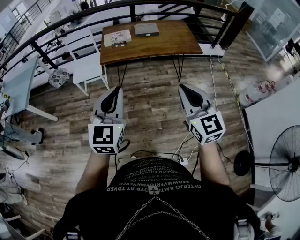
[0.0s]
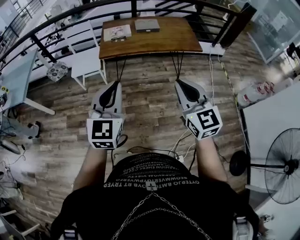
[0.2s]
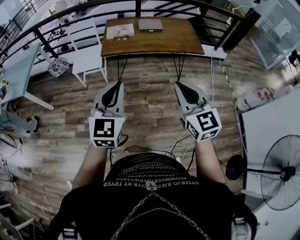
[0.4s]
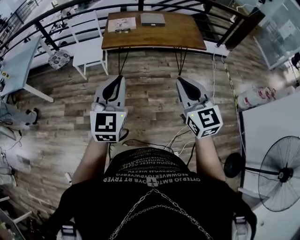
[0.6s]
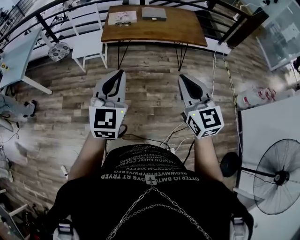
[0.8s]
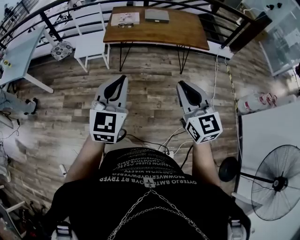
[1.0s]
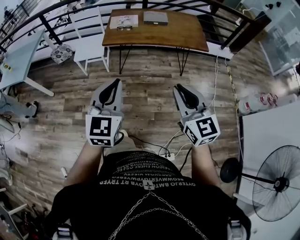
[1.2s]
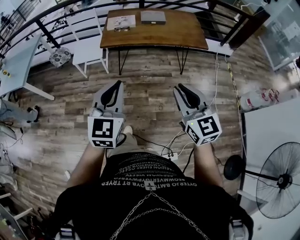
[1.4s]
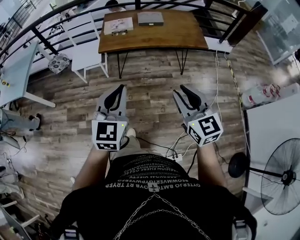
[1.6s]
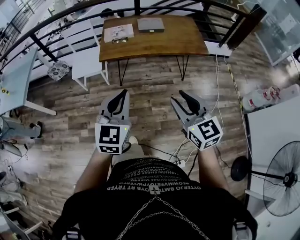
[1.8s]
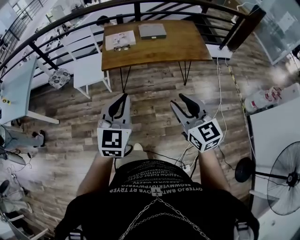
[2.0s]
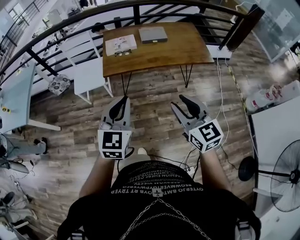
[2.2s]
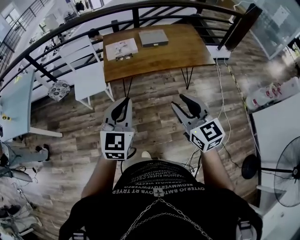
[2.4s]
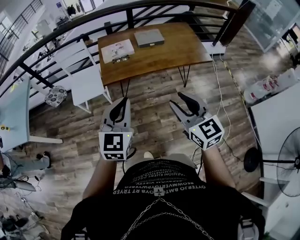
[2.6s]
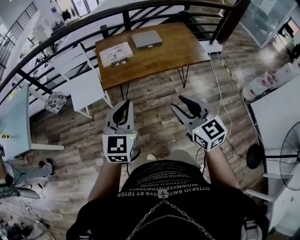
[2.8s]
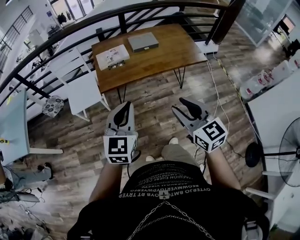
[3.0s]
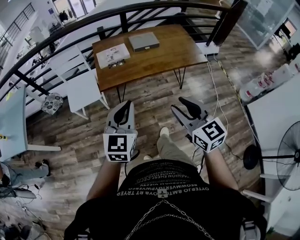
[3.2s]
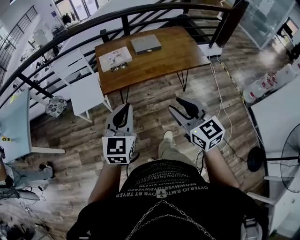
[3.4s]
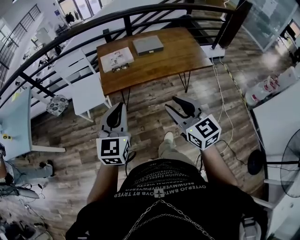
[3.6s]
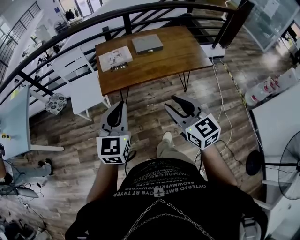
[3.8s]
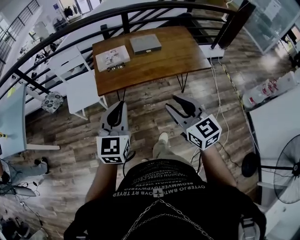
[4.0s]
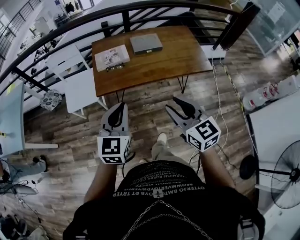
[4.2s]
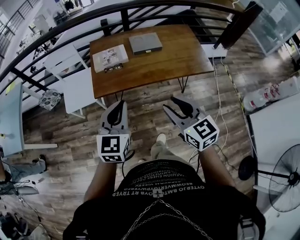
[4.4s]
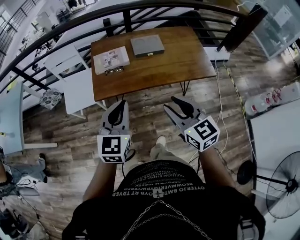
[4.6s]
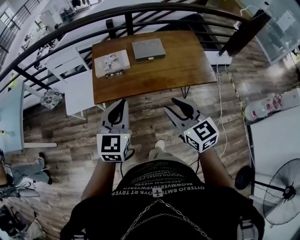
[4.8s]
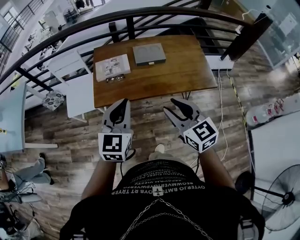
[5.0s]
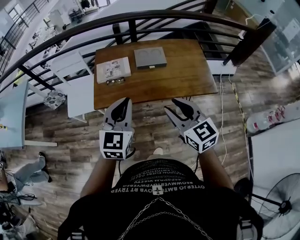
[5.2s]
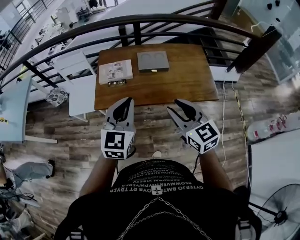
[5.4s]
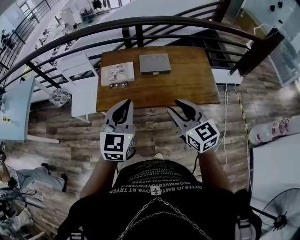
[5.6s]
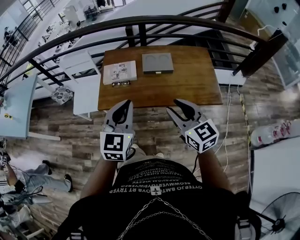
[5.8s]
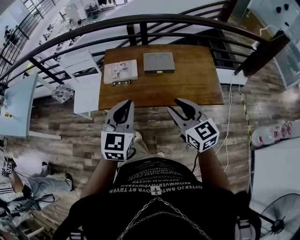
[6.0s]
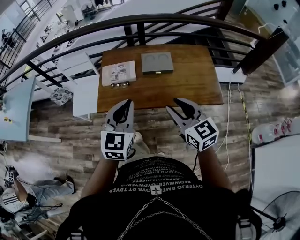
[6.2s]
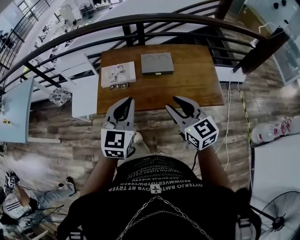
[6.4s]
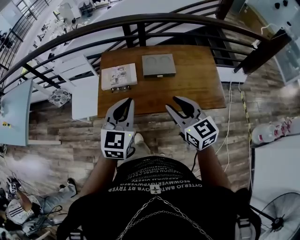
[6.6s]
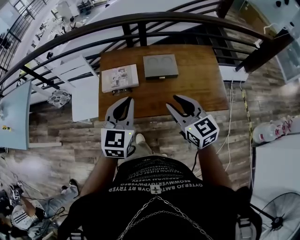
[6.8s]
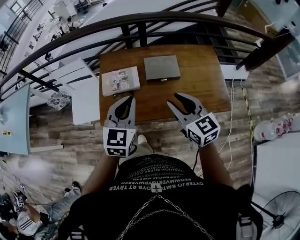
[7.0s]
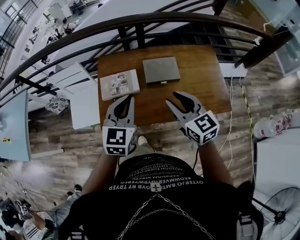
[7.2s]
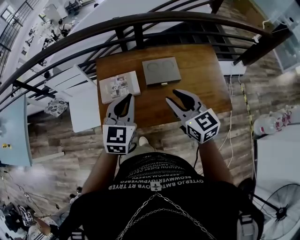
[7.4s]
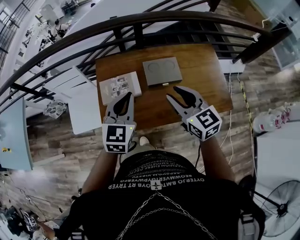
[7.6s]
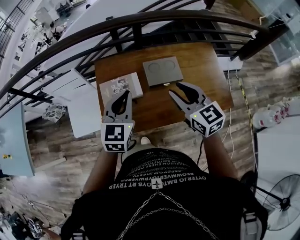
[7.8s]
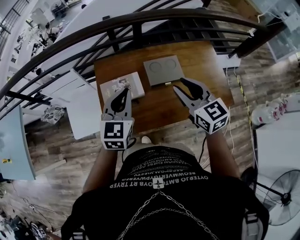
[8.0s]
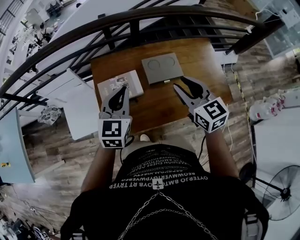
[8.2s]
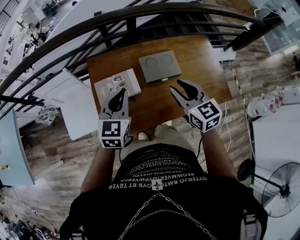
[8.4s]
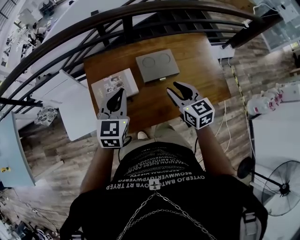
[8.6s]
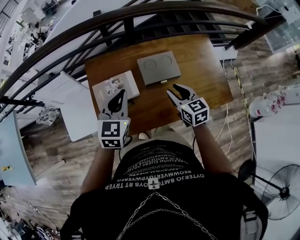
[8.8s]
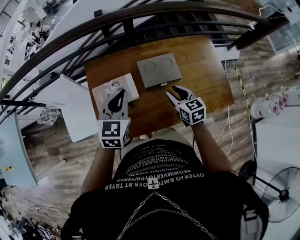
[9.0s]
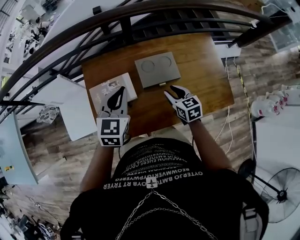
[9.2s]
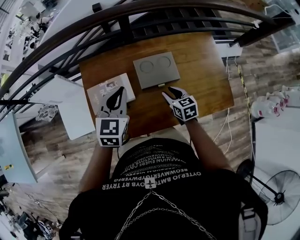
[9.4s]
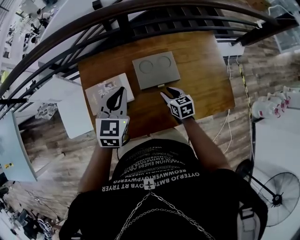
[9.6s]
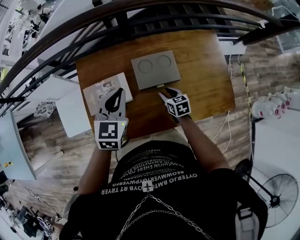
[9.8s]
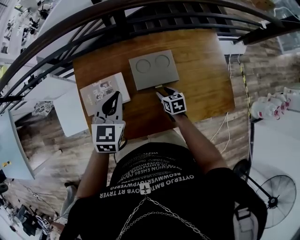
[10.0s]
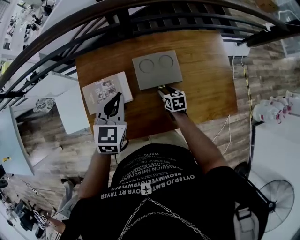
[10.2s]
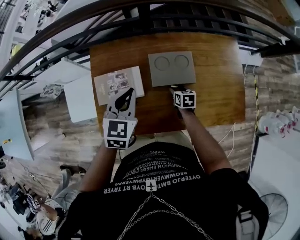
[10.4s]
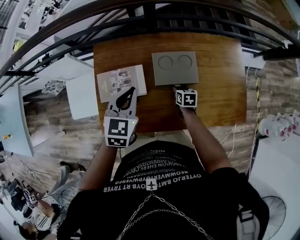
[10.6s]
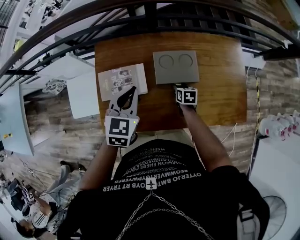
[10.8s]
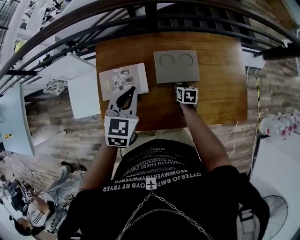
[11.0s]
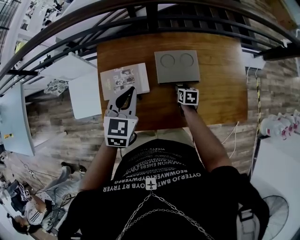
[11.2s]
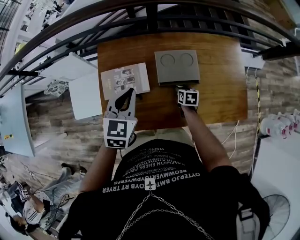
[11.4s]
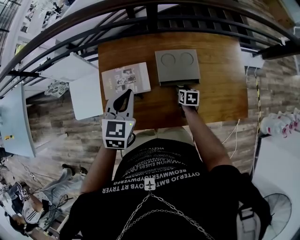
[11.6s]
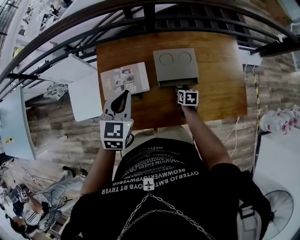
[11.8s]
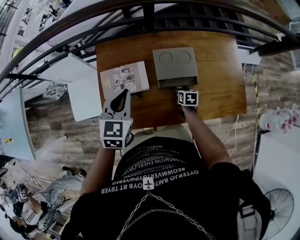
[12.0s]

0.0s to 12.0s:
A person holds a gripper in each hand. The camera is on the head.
0.0s to 1.6s: The left gripper goes some 5 cm to the right and downward, while the right gripper heads downward, covering roughly 5 cm, and opens.
1.6s to 3.0s: The two grippers go about 25 cm forward and to the left.
3.0s to 4.4s: The right gripper shifts approximately 15 cm forward; the left gripper goes about 15 cm forward and to the right.
4.4s to 6.0s: The left gripper travels to the right and forward by roughly 15 cm. Meanwhile the right gripper travels forward and to the right by about 20 cm.
6.0s to 7.6s: Both grippers travel together forward, some 30 cm.
7.6s to 9.0s: The right gripper moves downward and forward, approximately 20 cm, and changes its angle by approximately 20 degrees. The left gripper is displaced forward and downward by about 15 cm.
9.0s to 10.4s: The right gripper travels downward by about 20 cm, and changes its angle by approximately 30 degrees, while the left gripper shifts some 10 cm downward and forward.
10.4s to 12.0s: The right gripper moves backward, approximately 5 cm. The left gripper goes roughly 10 cm to the left and backward.

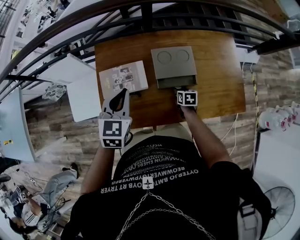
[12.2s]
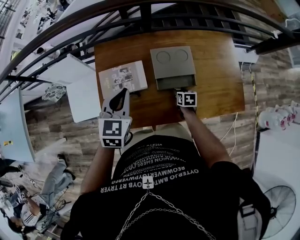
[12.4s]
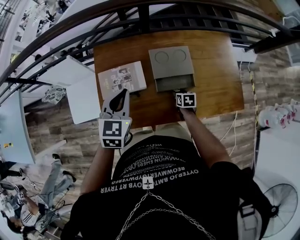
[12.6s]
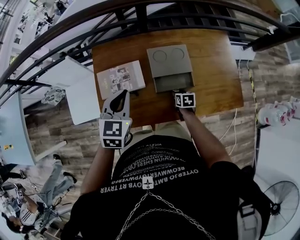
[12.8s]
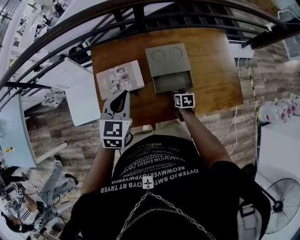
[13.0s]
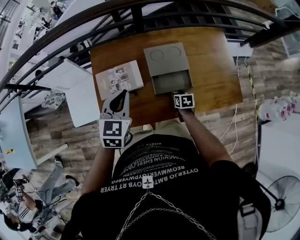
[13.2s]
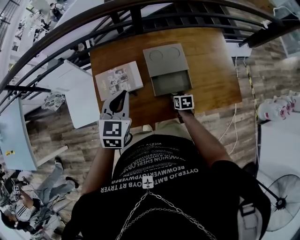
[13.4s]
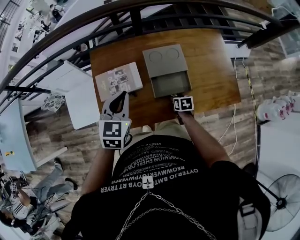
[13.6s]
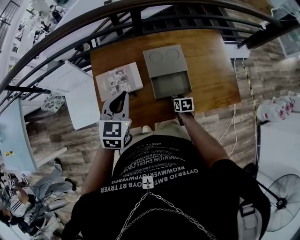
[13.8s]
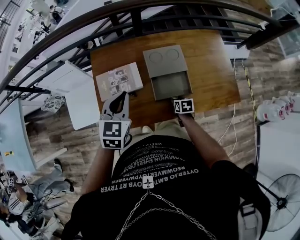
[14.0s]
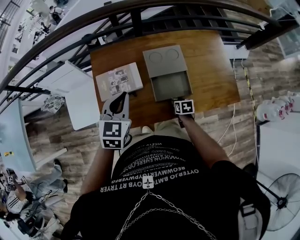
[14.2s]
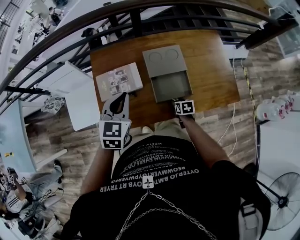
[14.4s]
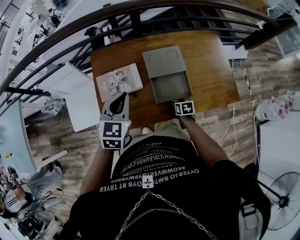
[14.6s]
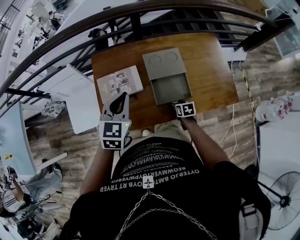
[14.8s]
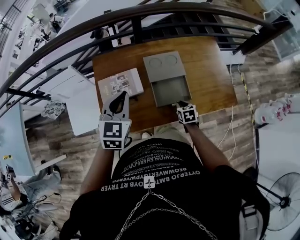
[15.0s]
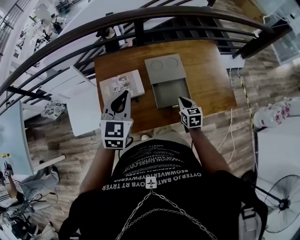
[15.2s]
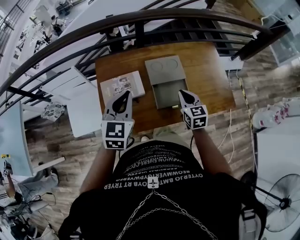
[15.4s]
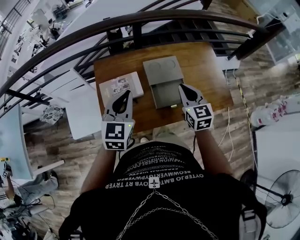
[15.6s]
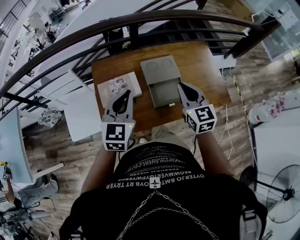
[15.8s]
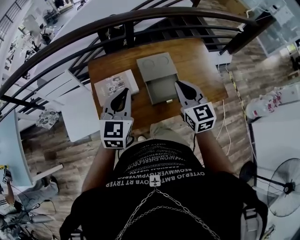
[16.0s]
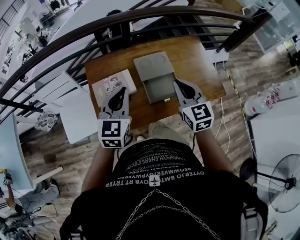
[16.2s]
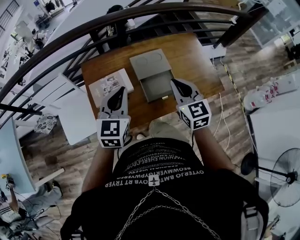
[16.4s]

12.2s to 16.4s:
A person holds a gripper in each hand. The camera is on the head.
12.2s to 13.6s: The right gripper moves backward, about 10 cm.
13.6s to 15.0s: The right gripper travels upward by roughly 5 cm, and closes its fingers.
15.0s to 16.4s: The right gripper shifts roughly 30 cm upward, and angles its fingers upward, by about 40 degrees. The left gripper moves approximately 5 cm.

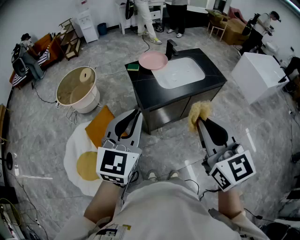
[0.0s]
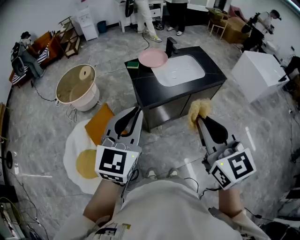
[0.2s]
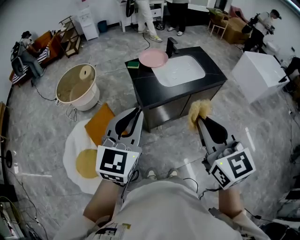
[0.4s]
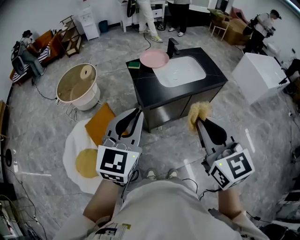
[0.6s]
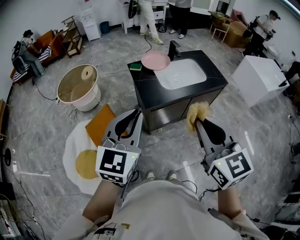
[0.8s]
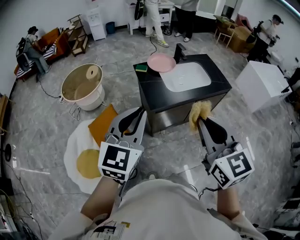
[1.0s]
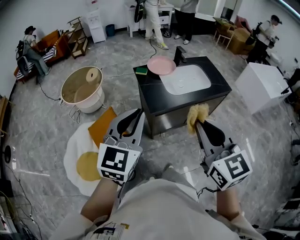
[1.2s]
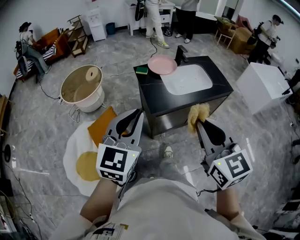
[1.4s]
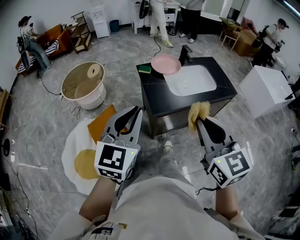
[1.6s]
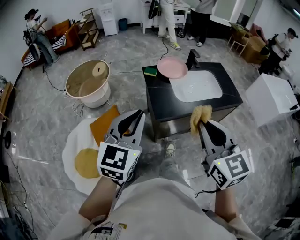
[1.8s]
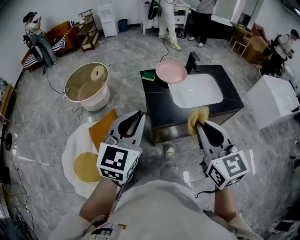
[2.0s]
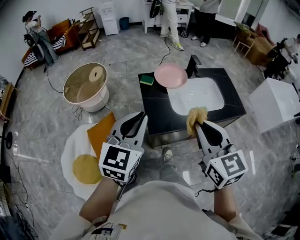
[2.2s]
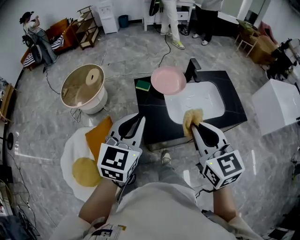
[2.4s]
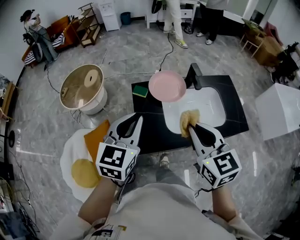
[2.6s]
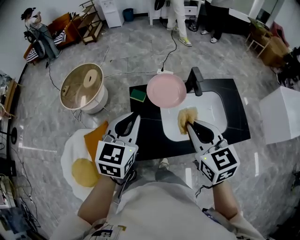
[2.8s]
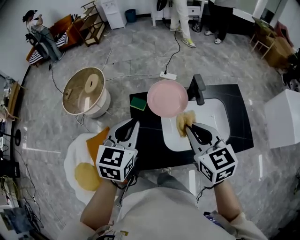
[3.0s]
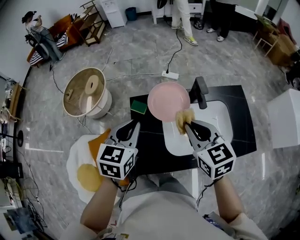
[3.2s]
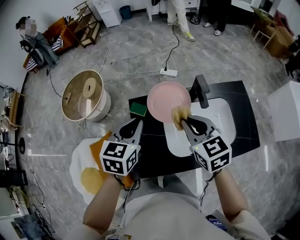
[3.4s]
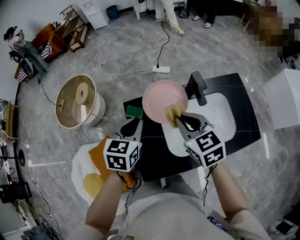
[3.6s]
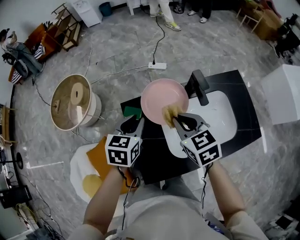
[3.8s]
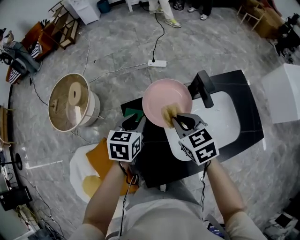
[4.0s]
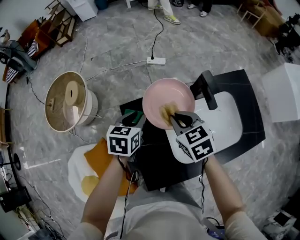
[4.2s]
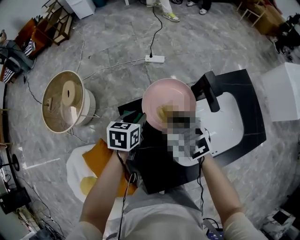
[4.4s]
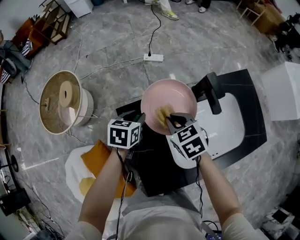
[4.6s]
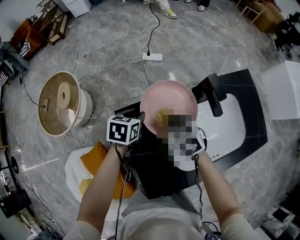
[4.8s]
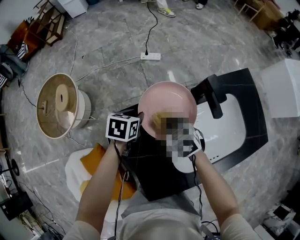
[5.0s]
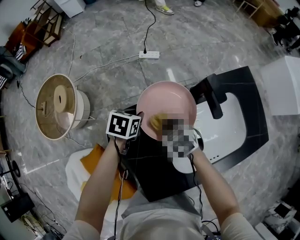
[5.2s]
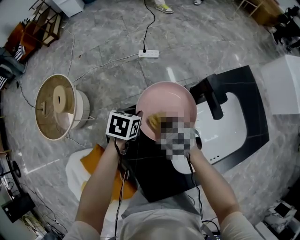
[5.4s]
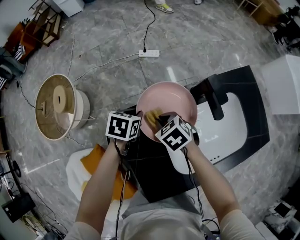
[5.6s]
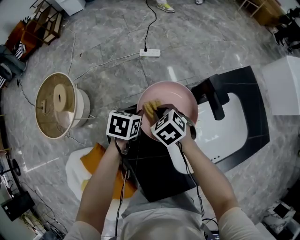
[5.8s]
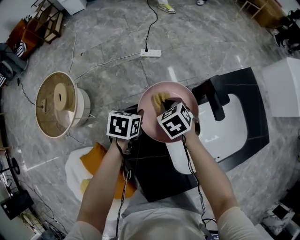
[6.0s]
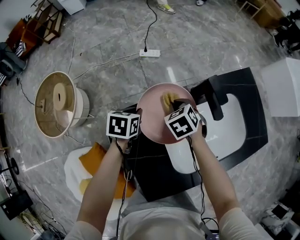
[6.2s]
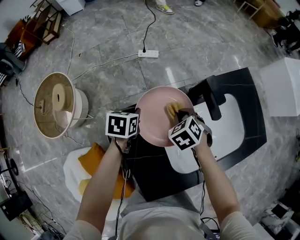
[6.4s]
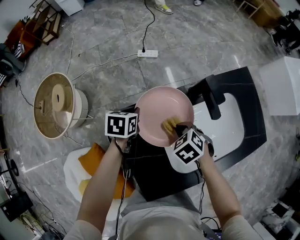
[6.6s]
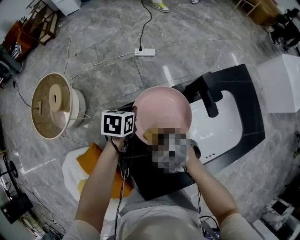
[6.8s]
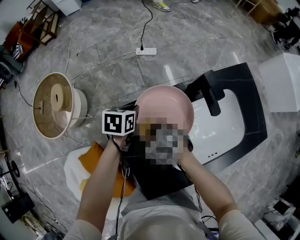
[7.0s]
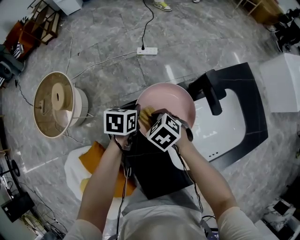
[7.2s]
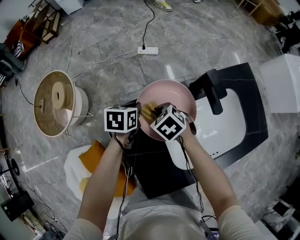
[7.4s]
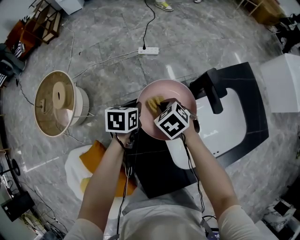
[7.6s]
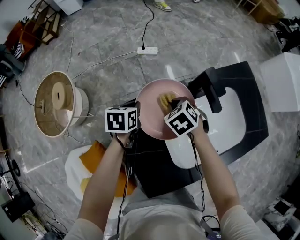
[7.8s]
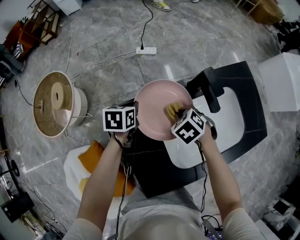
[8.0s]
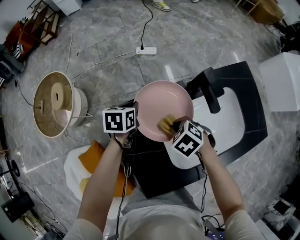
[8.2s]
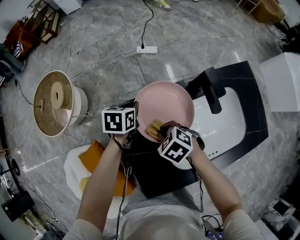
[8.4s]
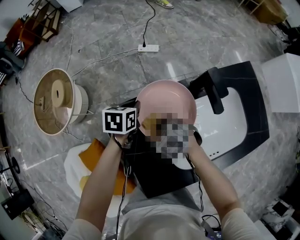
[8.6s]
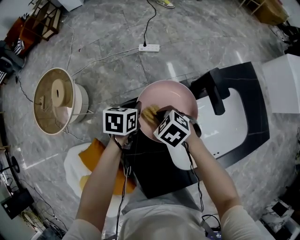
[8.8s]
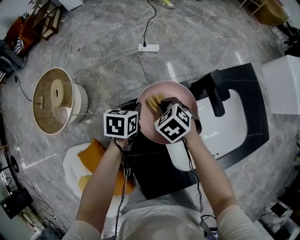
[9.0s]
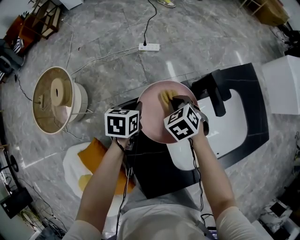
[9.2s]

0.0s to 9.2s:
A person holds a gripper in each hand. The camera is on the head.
0.0s to 1.6s: The left gripper travels forward and to the left by approximately 5 cm. The right gripper travels forward by some 5 cm.
1.6s to 3.0s: Both grippers move forward, roughly 40 cm. The left gripper swivels some 30 degrees, while the right gripper changes its angle by roughly 20 degrees.
3.0s to 4.6s: Both grippers move downward and forward, some 30 cm. The left gripper changes its angle by roughly 30 degrees, and opens. The right gripper turns by roughly 20 degrees.
4.6s to 6.2s: The left gripper moves approximately 5 cm; the right gripper goes roughly 10 cm forward and downward.
6.2s to 7.6s: The right gripper travels to the left by about 5 cm, and reaches some 15 cm backward, then returns.
7.6s to 9.2s: The right gripper travels backward and back again, approximately 10 cm each way.
